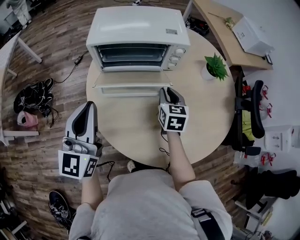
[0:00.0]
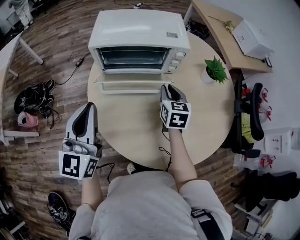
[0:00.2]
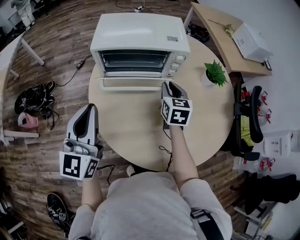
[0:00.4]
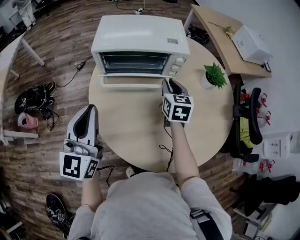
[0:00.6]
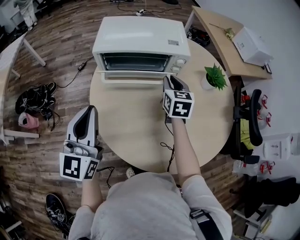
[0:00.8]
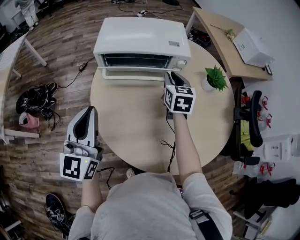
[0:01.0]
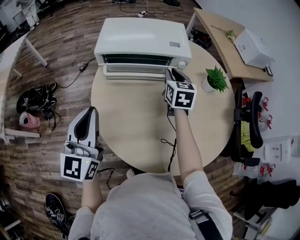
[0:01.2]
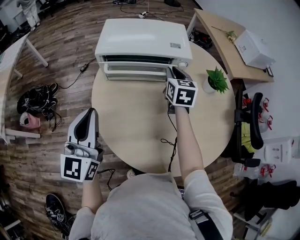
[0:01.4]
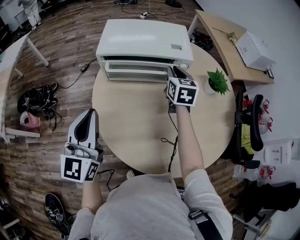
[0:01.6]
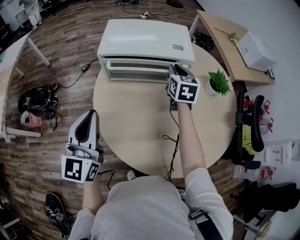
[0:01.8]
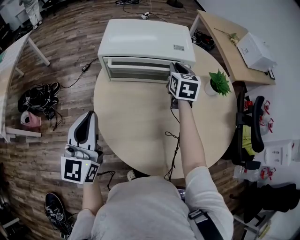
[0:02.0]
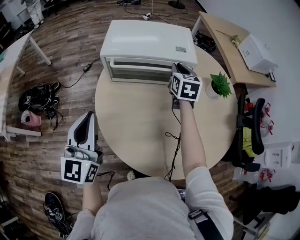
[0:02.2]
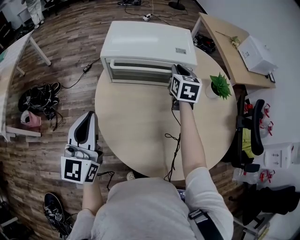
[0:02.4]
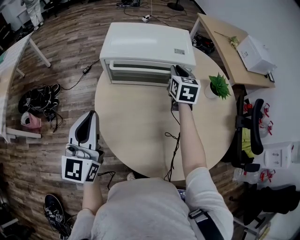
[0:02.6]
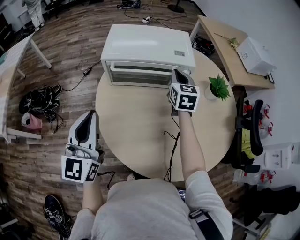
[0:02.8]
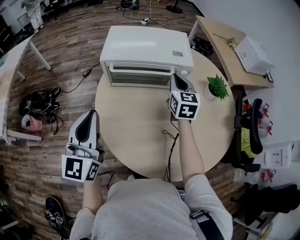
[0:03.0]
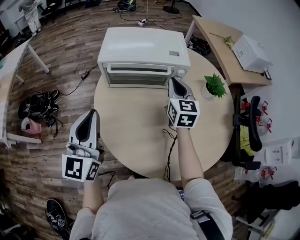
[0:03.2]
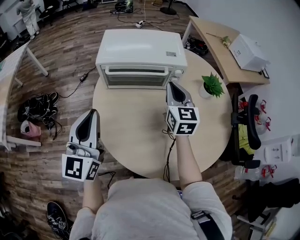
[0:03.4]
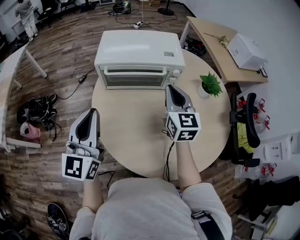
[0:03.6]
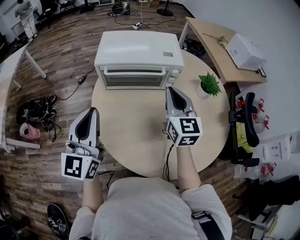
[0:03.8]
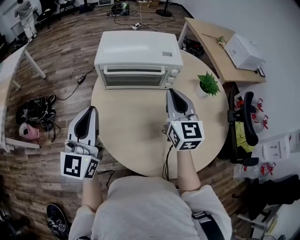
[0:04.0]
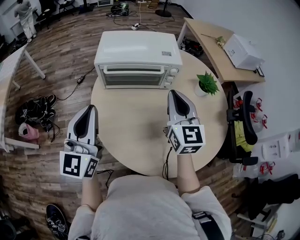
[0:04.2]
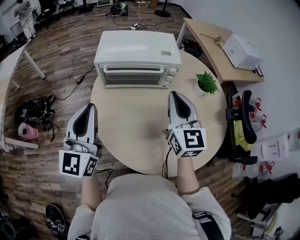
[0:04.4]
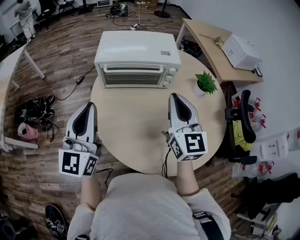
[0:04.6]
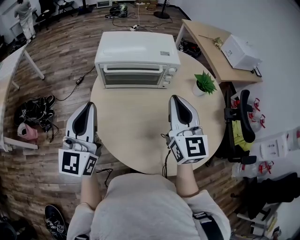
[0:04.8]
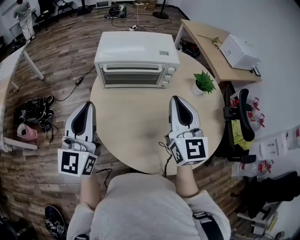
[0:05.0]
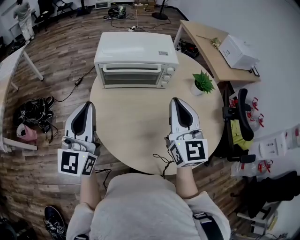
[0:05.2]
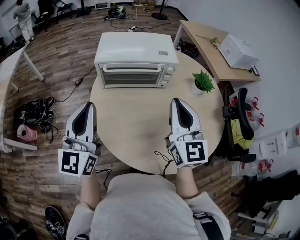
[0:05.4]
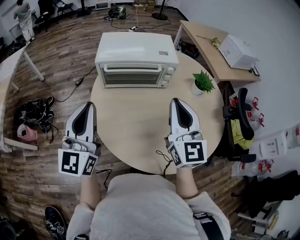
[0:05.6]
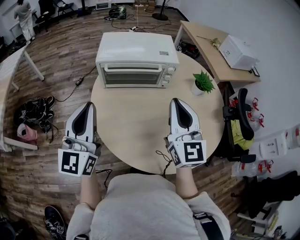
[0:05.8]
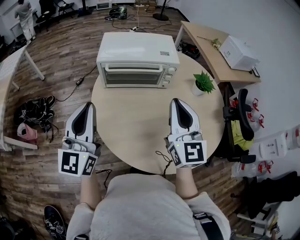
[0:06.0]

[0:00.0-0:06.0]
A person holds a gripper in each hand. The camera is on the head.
0:00.0 to 0:01.6: The right gripper goes approximately 15 cm forward and upward.
0:01.6 to 0:03.0: There are only small adjustments of the grippers.
0:03.0 to 0:04.4: The right gripper goes about 20 cm backward and upward.
0:04.4 to 0:06.0: The right gripper moves backward, some 5 cm.

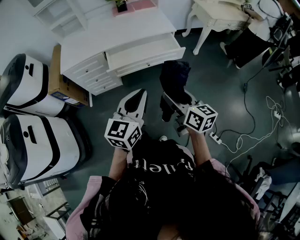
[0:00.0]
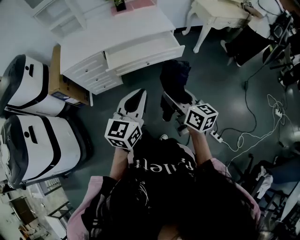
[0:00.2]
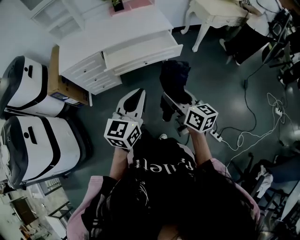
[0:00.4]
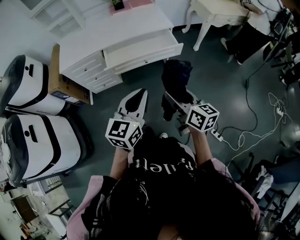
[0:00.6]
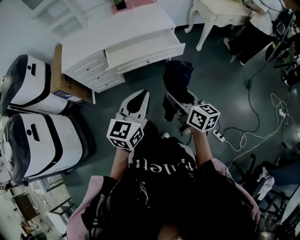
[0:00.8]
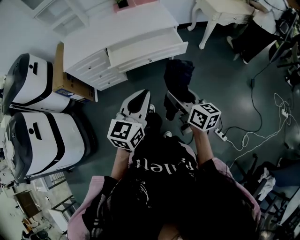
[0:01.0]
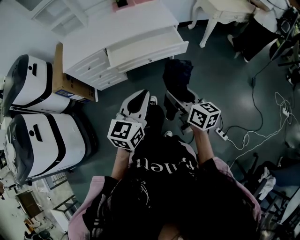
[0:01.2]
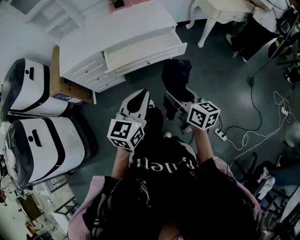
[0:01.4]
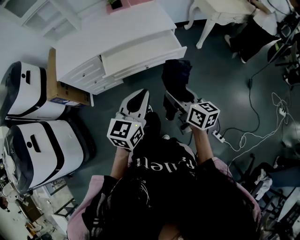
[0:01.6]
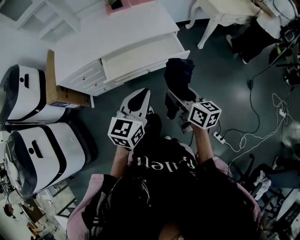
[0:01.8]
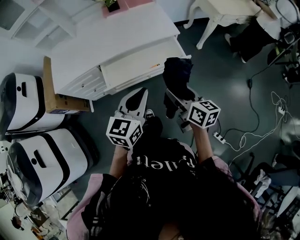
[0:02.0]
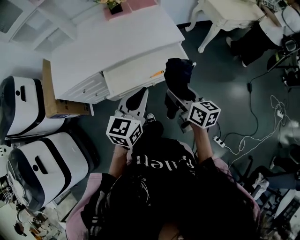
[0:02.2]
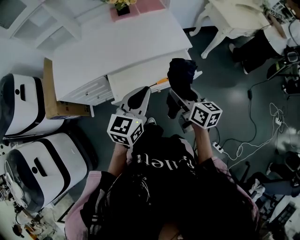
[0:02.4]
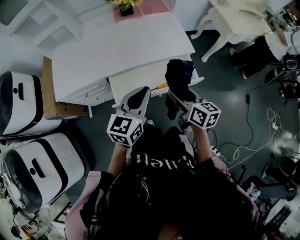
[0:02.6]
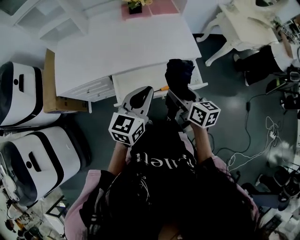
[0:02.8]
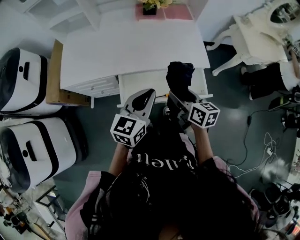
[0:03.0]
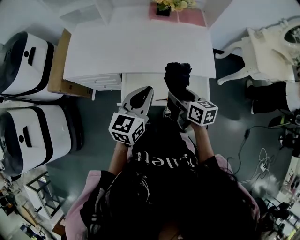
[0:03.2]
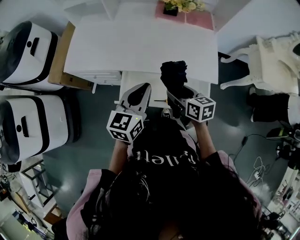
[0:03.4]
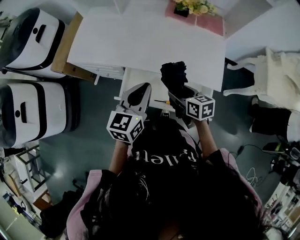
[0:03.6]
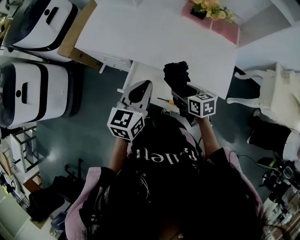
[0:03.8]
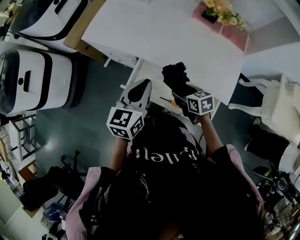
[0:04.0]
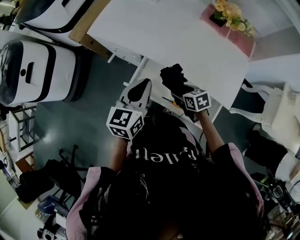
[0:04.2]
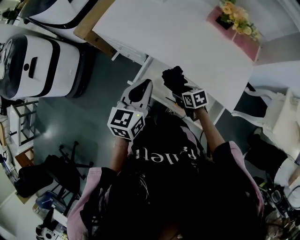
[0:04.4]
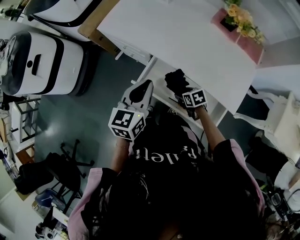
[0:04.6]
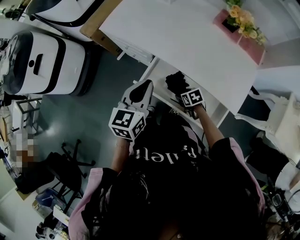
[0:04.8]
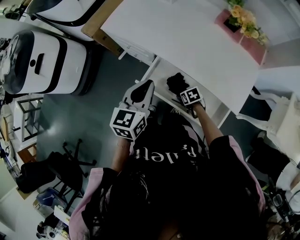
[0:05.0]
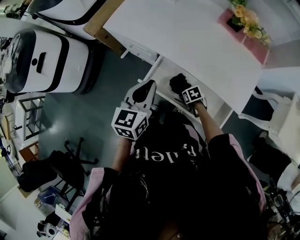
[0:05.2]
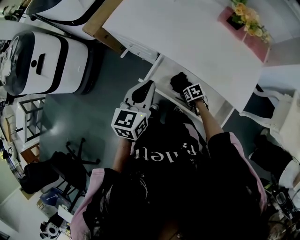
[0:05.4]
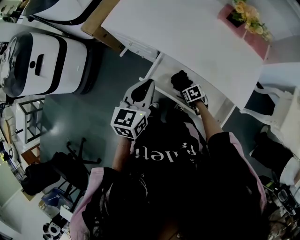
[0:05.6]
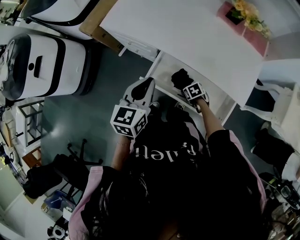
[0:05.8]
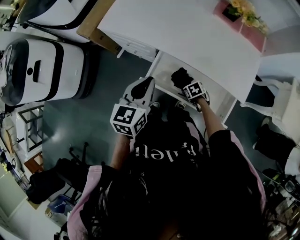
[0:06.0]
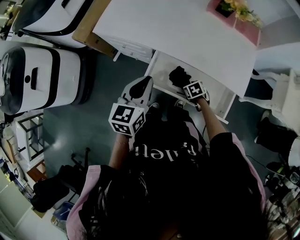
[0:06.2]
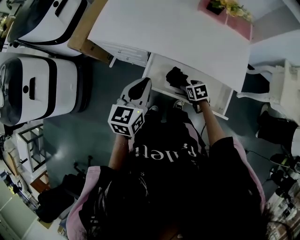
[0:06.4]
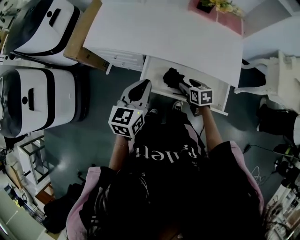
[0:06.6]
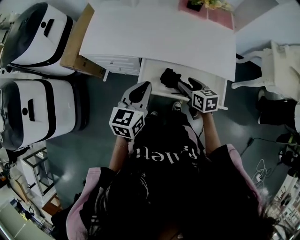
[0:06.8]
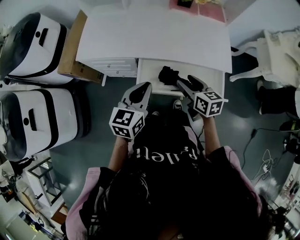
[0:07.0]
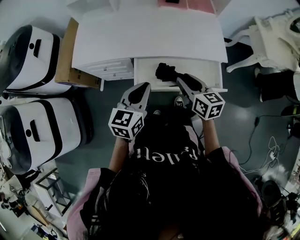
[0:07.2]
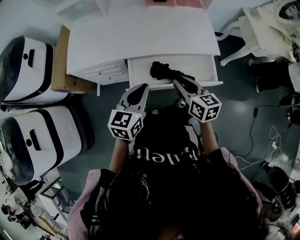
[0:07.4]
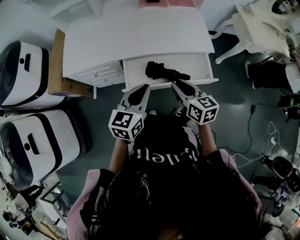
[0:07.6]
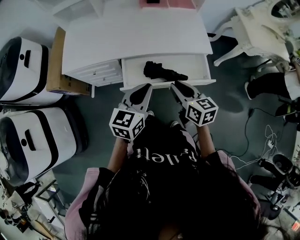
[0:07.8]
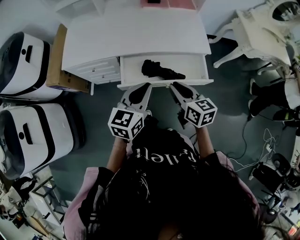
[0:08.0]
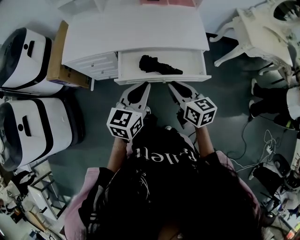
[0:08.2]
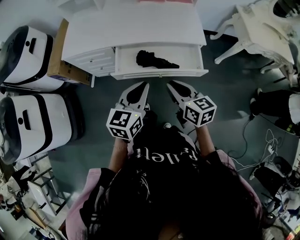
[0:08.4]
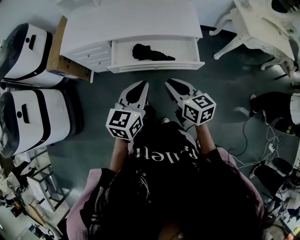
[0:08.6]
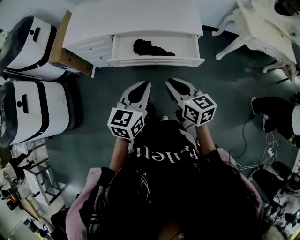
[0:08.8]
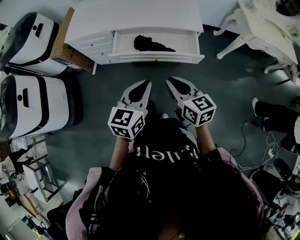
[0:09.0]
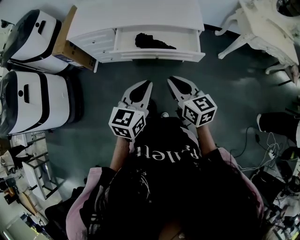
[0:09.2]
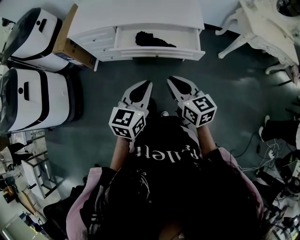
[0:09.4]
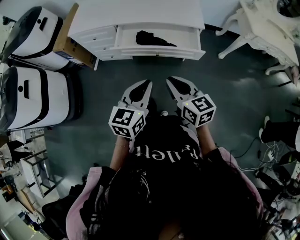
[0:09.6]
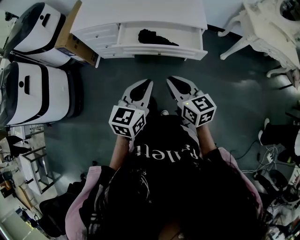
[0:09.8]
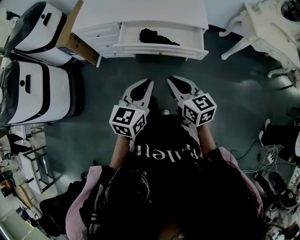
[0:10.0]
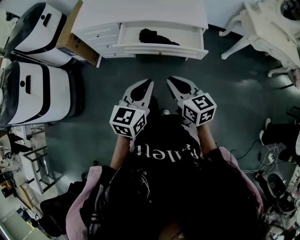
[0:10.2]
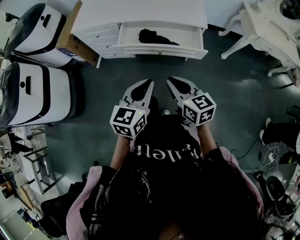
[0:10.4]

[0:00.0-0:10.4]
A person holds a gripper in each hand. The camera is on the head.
0:00.0 to 0:01.4: The right gripper heads forward, covering some 5 cm. Meanwhile the left gripper ends up about 5 cm from where it was.
0:01.4 to 0:03.0: Both grippers travel together forward, some 35 cm.
0:03.0 to 0:04.4: The right gripper heads downward, covering some 20 cm, and tips its fingers downward by roughly 30 degrees; the left gripper ends up roughly 10 cm from where it was, and rotates roughly 40 degrees.
0:04.4 to 0:06.0: The left gripper changes place by roughly 5 cm. Meanwhile the right gripper travels downward by roughly 10 cm, and changes its angle by some 20 degrees.
0:06.0 to 0:07.4: The right gripper is displaced upward by about 30 cm, points its fingers roughly 50 degrees further upward, and closes its fingers; the left gripper shifts by roughly 10 cm, and swivels some 30 degrees.
0:07.4 to 0:09.0: Both grippers move backward and to the right, roughly 25 cm.
0:09.0 to 0:10.4: Both grippers travel together backward, roughly 5 cm.

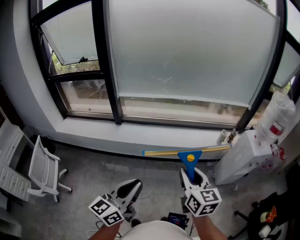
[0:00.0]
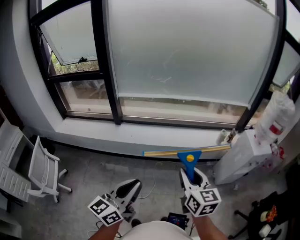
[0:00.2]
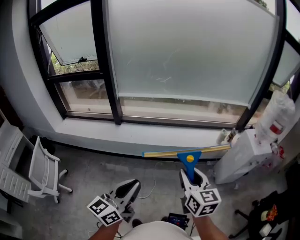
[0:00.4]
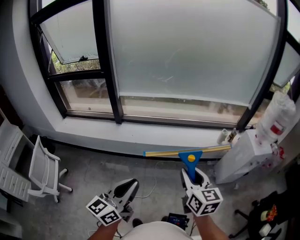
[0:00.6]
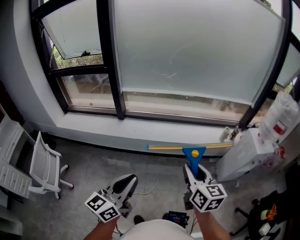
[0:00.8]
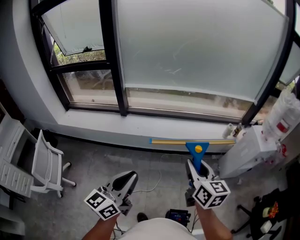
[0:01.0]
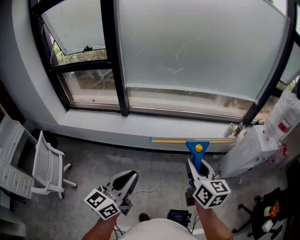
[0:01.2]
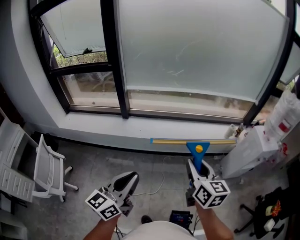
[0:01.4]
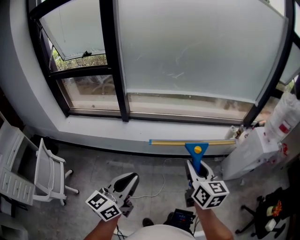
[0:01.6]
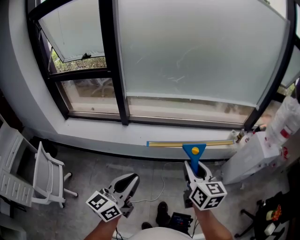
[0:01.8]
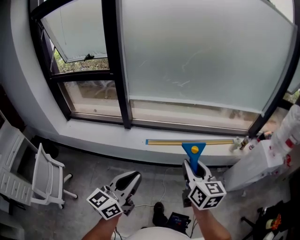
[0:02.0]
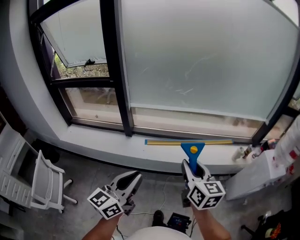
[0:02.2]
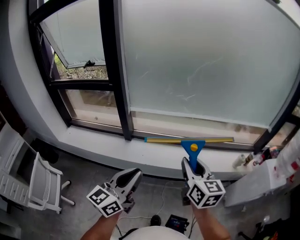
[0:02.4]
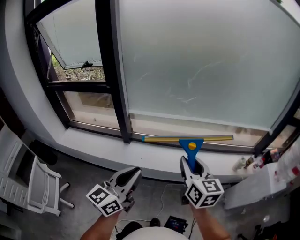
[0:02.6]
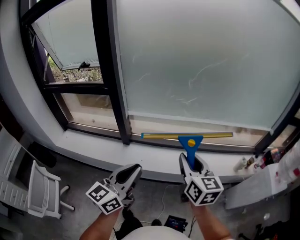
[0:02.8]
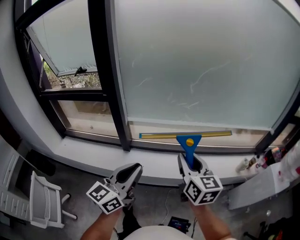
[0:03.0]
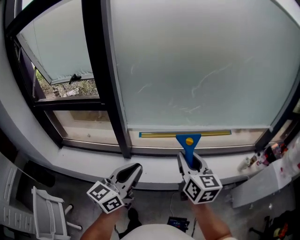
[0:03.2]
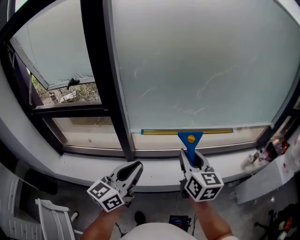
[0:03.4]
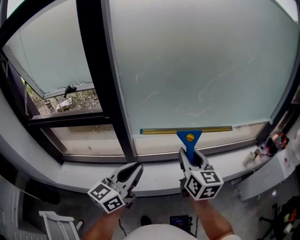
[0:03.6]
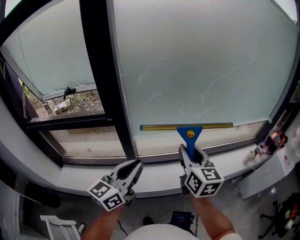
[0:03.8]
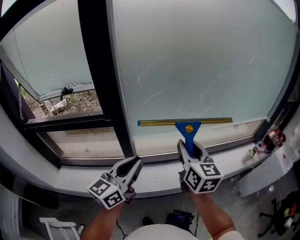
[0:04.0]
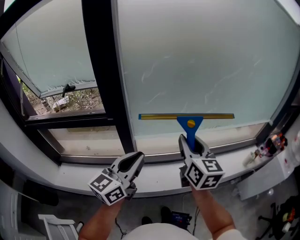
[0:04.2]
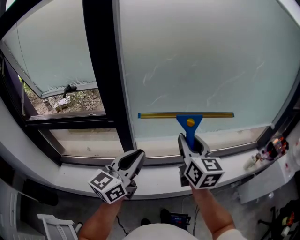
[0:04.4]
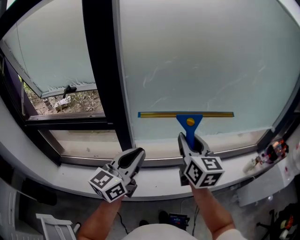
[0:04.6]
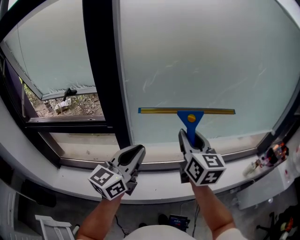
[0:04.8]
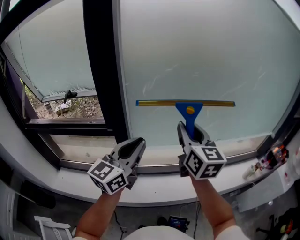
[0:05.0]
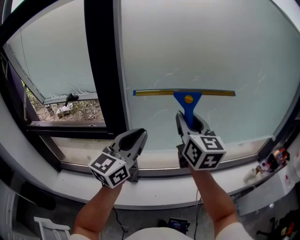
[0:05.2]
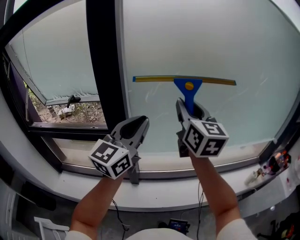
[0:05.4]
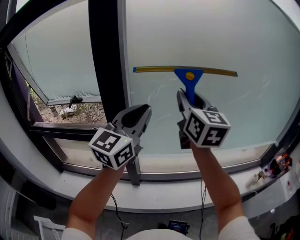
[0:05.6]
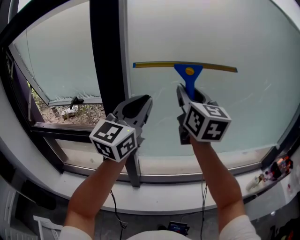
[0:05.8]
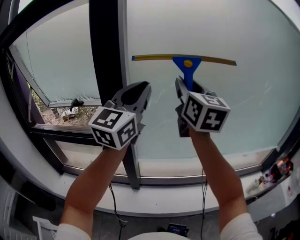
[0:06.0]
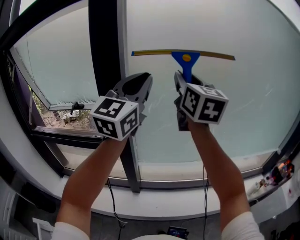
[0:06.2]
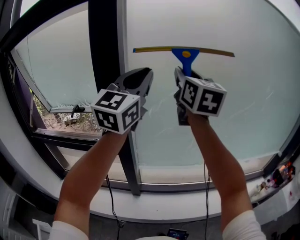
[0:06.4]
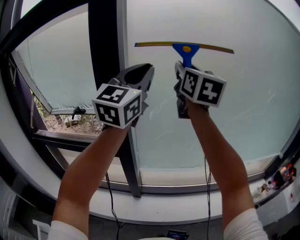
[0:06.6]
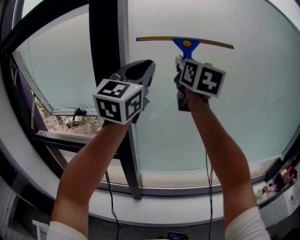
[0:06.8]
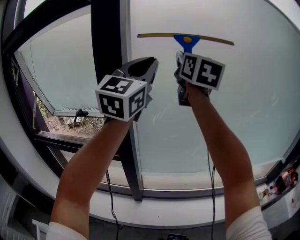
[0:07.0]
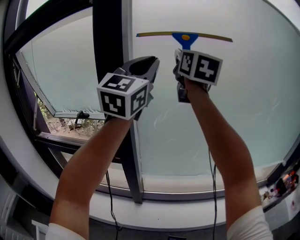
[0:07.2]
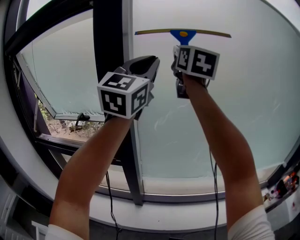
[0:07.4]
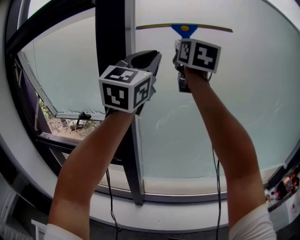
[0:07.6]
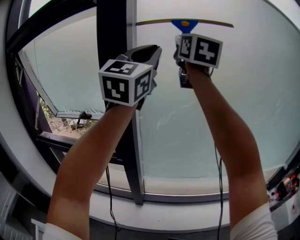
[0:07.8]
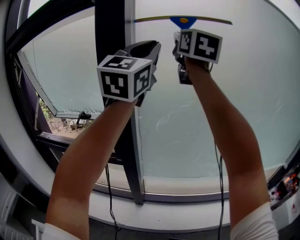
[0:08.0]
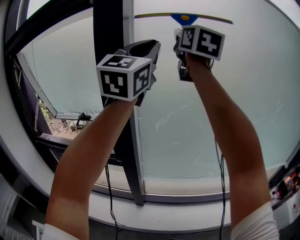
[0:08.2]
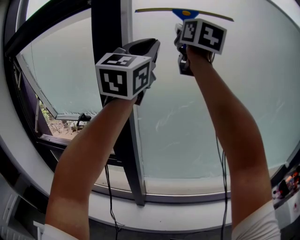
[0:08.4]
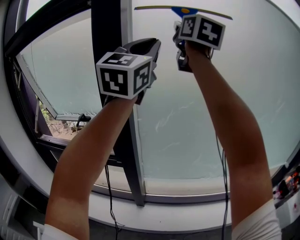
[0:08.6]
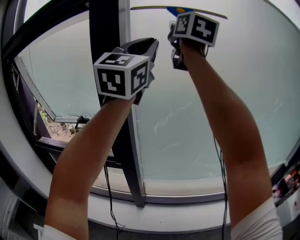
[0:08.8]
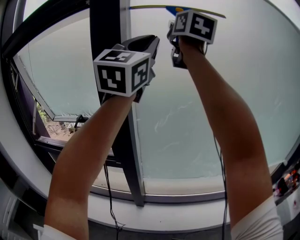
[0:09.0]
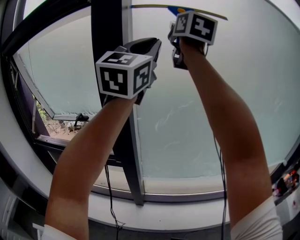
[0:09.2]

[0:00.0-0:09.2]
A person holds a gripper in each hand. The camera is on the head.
0:00.0 to 0:01.6: The two grippers go approximately 10 cm to the left.
0:01.6 to 0:03.0: The grippers both shift forward by approximately 35 cm.
0:03.0 to 0:04.6: Both grippers move to the left and forward, roughly 25 cm.
0:04.6 to 0:06.2: Both grippers move upward and forward, some 30 cm. The left gripper swivels approximately 30 degrees.
0:06.2 to 0:07.6: Both grippers travel together upward and forward, approximately 15 cm.
0:07.6 to 0:09.2: The right gripper heads upward, covering about 5 cm.
